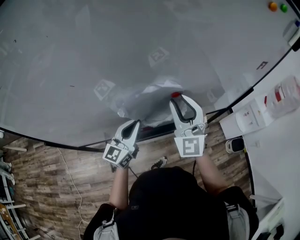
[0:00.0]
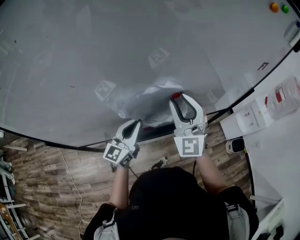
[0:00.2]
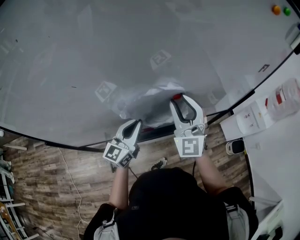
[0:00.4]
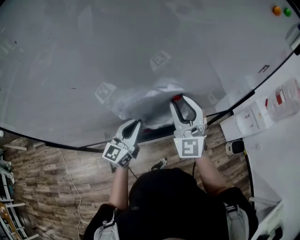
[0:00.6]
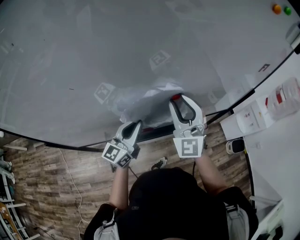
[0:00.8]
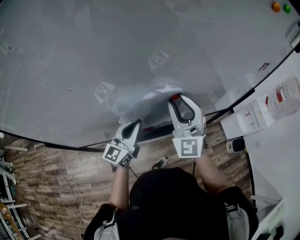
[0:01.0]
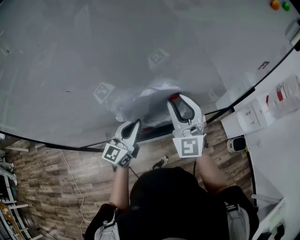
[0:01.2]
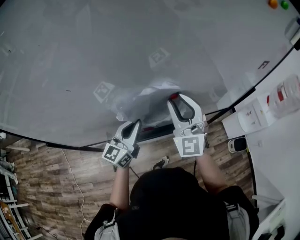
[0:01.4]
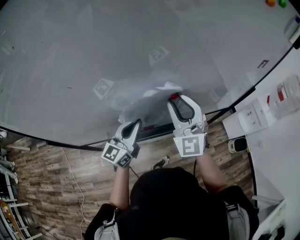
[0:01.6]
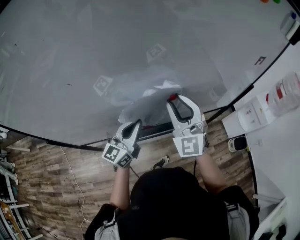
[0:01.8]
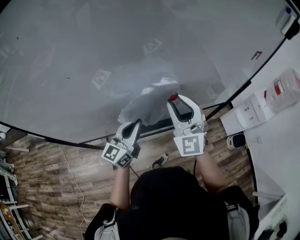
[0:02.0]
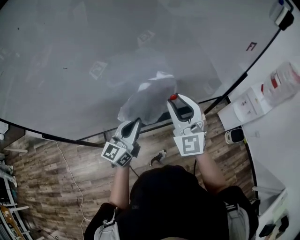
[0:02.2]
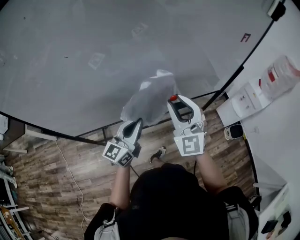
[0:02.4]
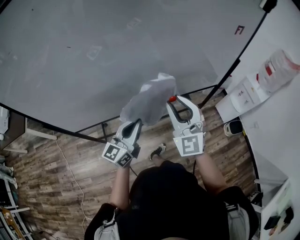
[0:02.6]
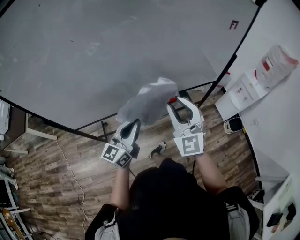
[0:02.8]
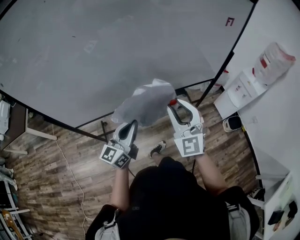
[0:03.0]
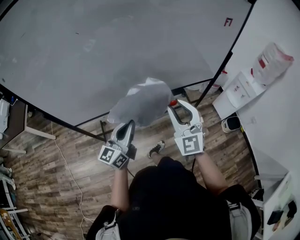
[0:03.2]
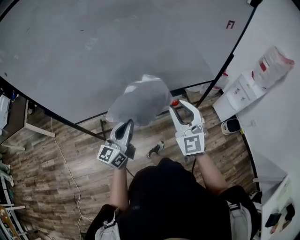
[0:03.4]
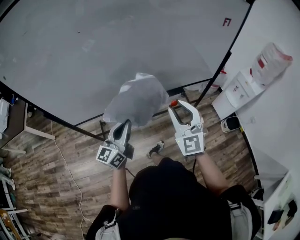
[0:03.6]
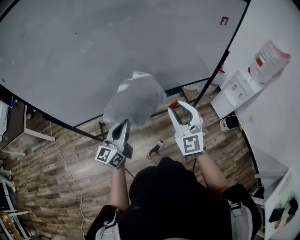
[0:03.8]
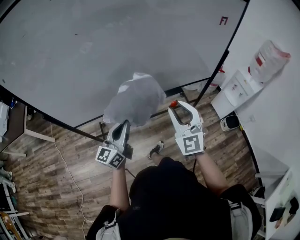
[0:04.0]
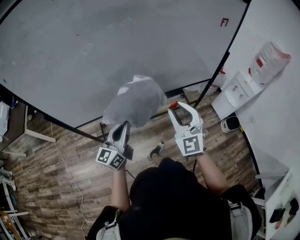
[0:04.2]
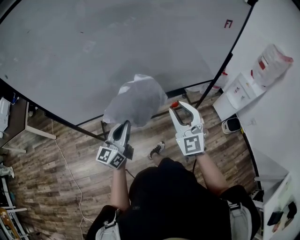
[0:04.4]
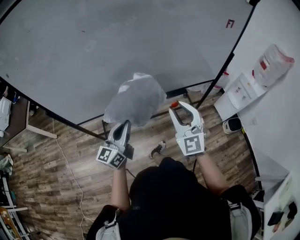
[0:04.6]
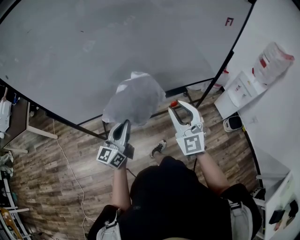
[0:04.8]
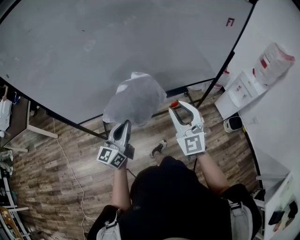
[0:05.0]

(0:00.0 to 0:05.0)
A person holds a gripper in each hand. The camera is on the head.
0:00.0 - 0:01.6: There are only small adjustments of the grippers.
0:01.6 - 0:03.4: Both grippers travel together backward, roughly 25 cm.
0:03.4 - 0:05.0: The grippers move only a little.

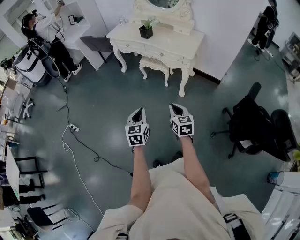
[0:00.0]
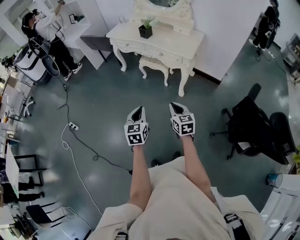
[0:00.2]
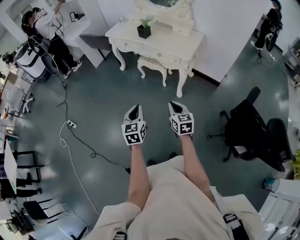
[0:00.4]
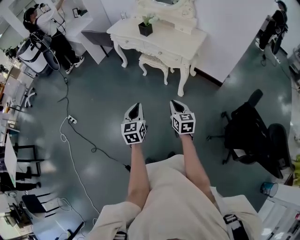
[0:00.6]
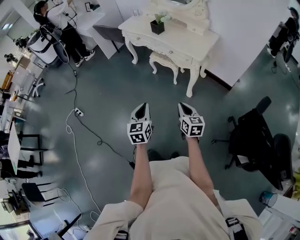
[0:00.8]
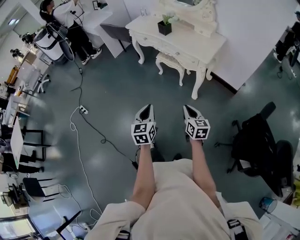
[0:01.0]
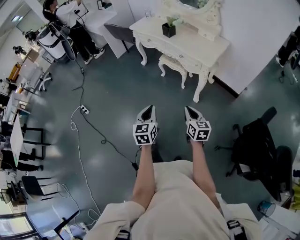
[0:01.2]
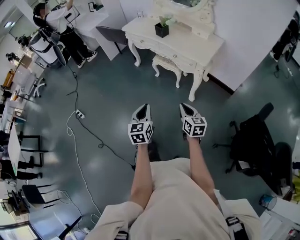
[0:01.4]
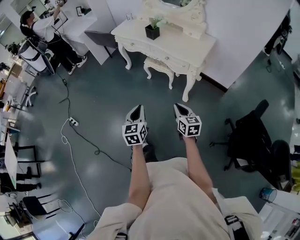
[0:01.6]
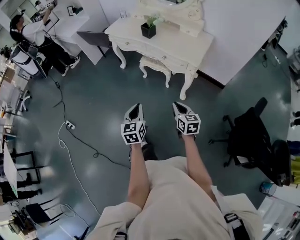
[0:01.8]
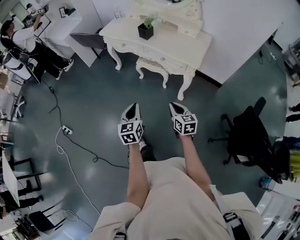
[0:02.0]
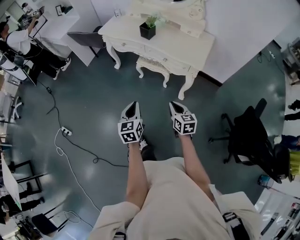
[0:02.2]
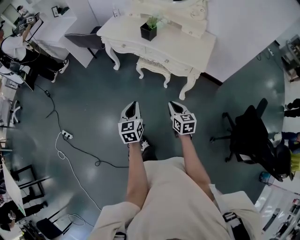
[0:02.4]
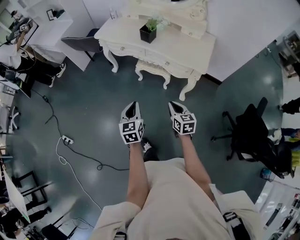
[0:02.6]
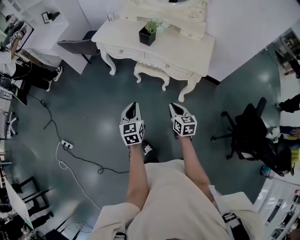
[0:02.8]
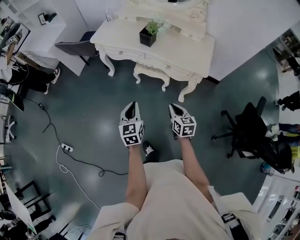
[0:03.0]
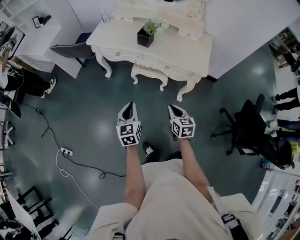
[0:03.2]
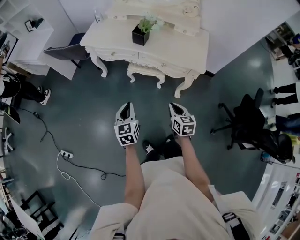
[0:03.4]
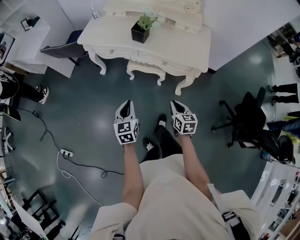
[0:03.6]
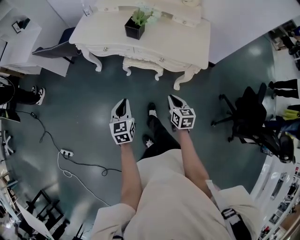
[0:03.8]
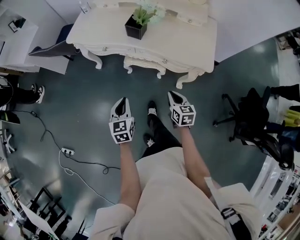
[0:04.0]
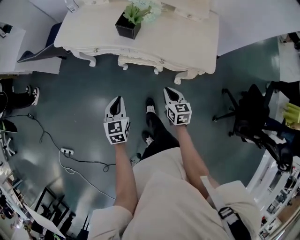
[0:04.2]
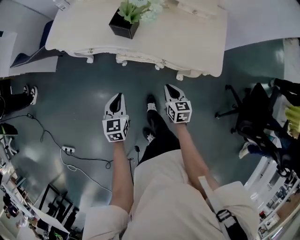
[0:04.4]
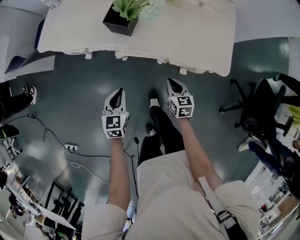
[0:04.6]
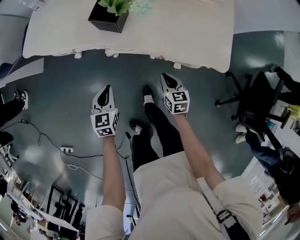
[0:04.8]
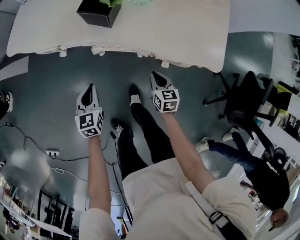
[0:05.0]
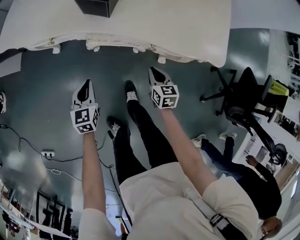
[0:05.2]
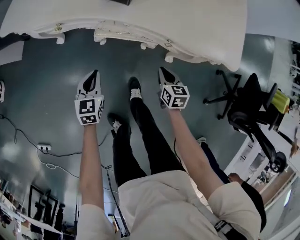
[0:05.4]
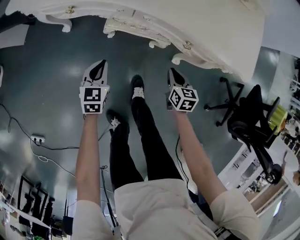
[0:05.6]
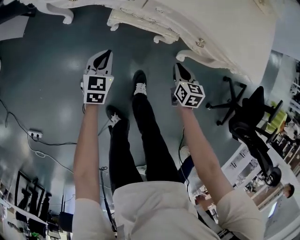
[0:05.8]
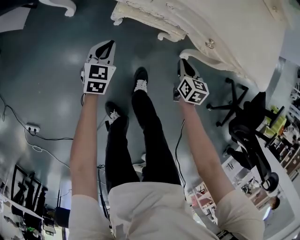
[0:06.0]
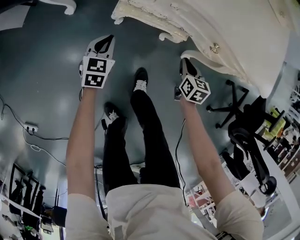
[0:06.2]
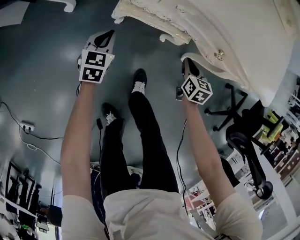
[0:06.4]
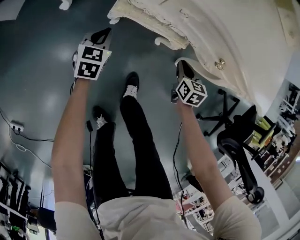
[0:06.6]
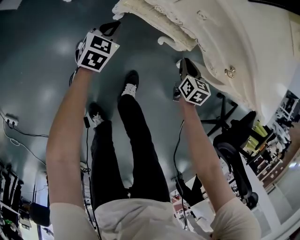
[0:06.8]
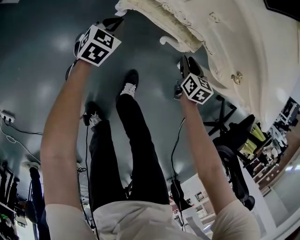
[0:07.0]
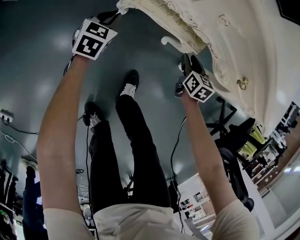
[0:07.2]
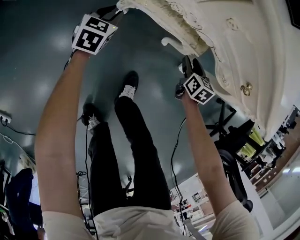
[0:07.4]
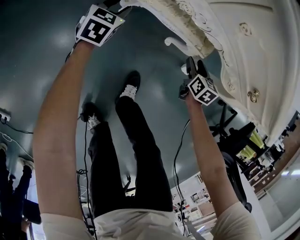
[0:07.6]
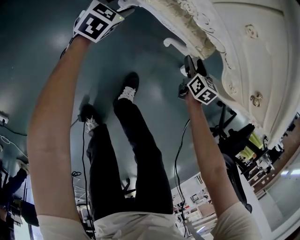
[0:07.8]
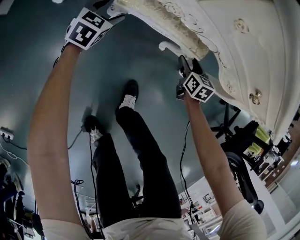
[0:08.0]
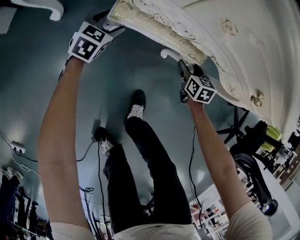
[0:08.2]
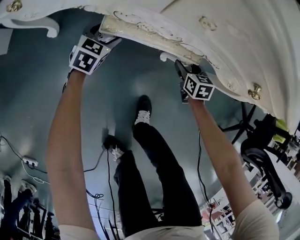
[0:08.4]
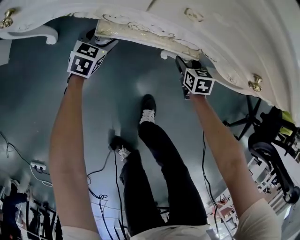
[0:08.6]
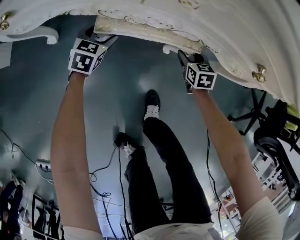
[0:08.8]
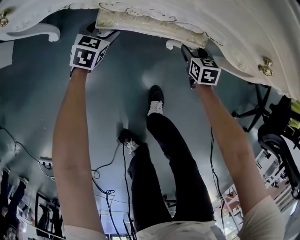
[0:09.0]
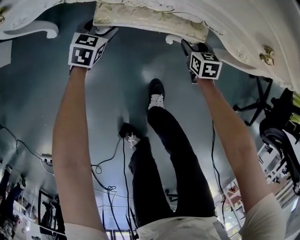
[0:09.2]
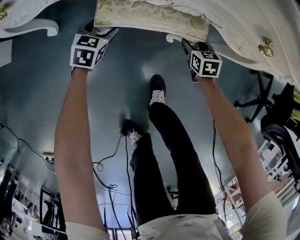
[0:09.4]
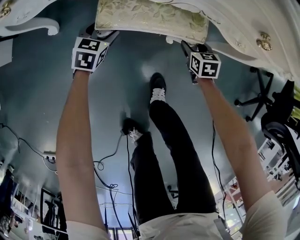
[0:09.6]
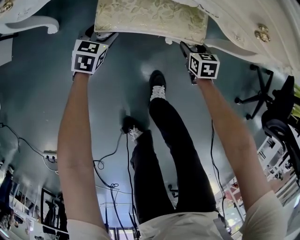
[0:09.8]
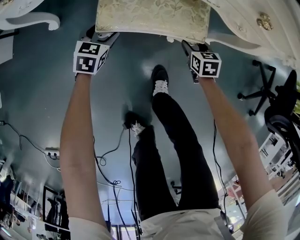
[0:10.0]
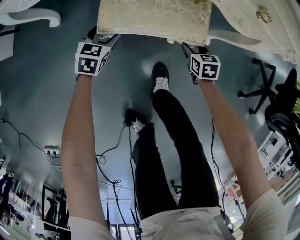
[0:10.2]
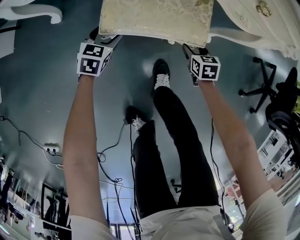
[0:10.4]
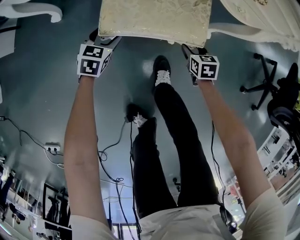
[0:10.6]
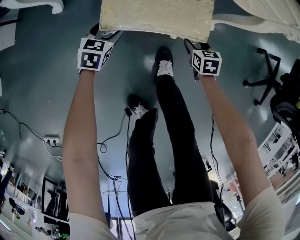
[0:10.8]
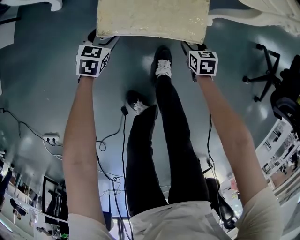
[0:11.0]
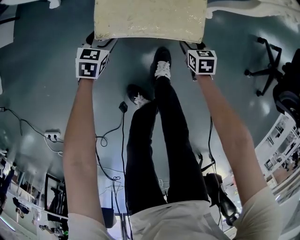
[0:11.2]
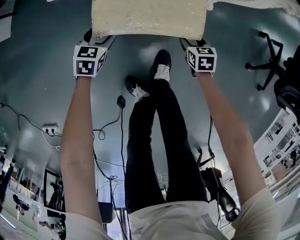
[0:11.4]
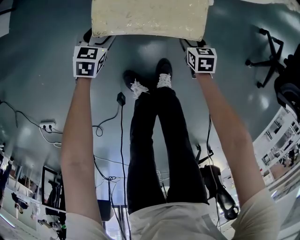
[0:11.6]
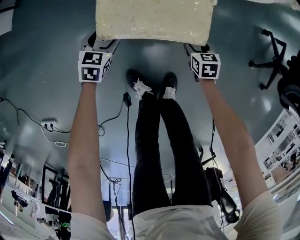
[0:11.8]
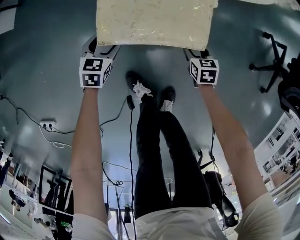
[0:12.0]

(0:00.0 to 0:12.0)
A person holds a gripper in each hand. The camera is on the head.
0:00.0 - 0:01.6: The left gripper travels forward by some 10 cm. The right gripper shifts roughly 10 cm forward and to the right.
0:01.6 - 0:03.0: Both grippers travel together forward and to the left, roughly 30 cm.
0:03.0 - 0:04.4: The grippers both shift forward and downward by about 30 cm.
0:04.4 - 0:06.0: Both grippers travel together downward, roughly 25 cm.
0:06.0 - 0:07.6: Both grippers move downward and forward, approximately 20 cm. The left gripper opens; the right gripper opens its fingers.
0:07.6 - 0:09.0: The right gripper changes place by roughly 5 cm. Meanwhile the left gripper shifts by approximately 5 cm, and opens.
0:09.0 - 0:10.4: The two grippers go about 15 cm backward.
0:10.4 - 0:12.0: Both grippers move backward, some 25 cm.

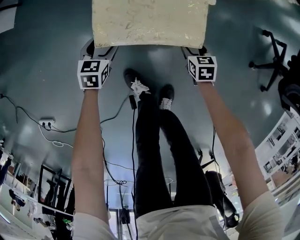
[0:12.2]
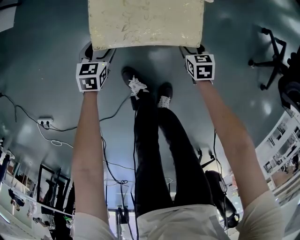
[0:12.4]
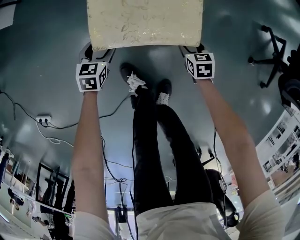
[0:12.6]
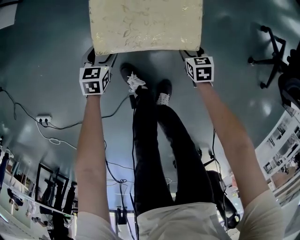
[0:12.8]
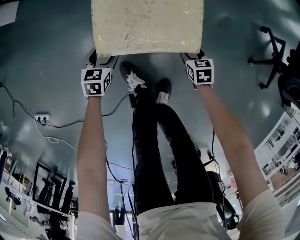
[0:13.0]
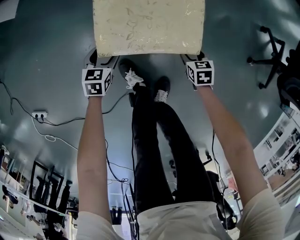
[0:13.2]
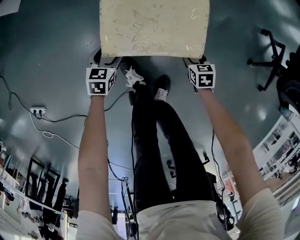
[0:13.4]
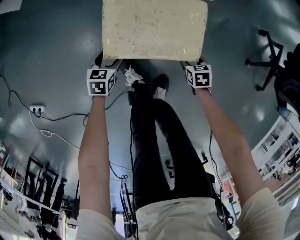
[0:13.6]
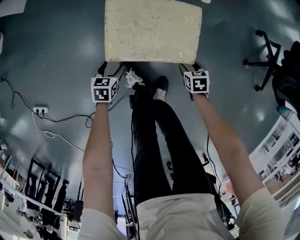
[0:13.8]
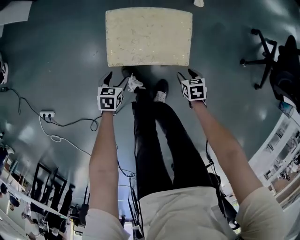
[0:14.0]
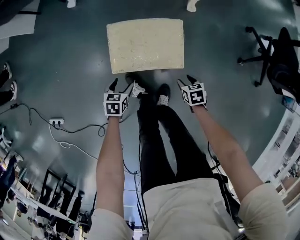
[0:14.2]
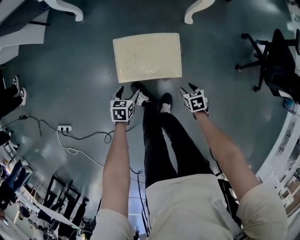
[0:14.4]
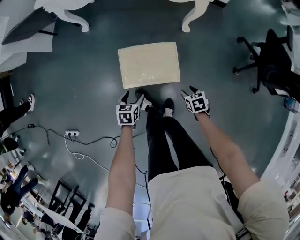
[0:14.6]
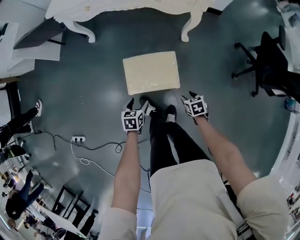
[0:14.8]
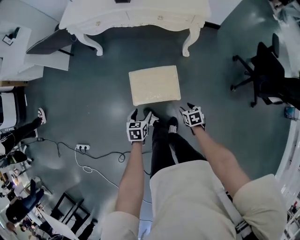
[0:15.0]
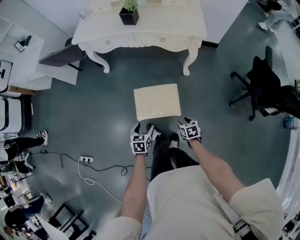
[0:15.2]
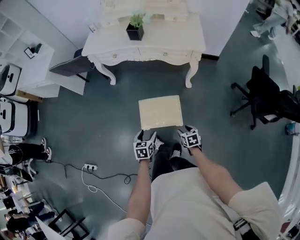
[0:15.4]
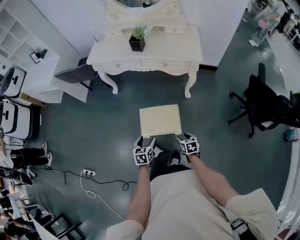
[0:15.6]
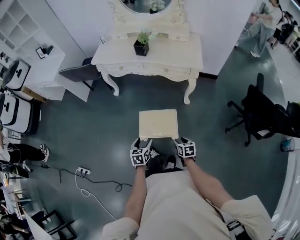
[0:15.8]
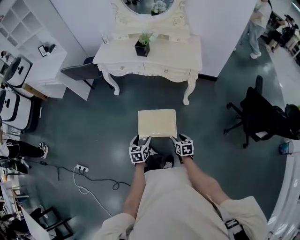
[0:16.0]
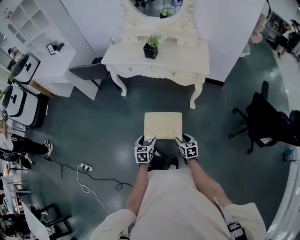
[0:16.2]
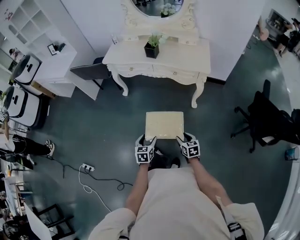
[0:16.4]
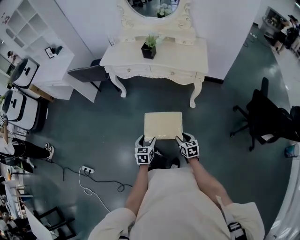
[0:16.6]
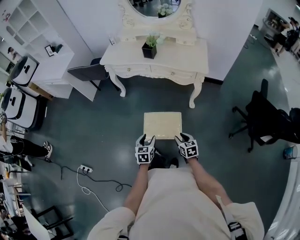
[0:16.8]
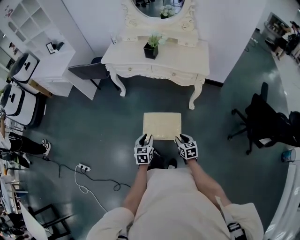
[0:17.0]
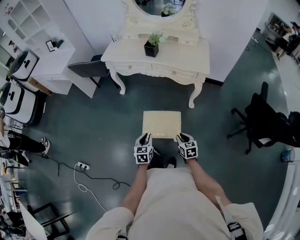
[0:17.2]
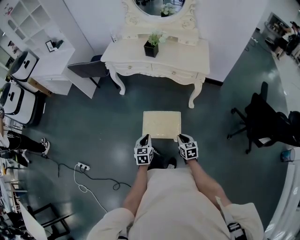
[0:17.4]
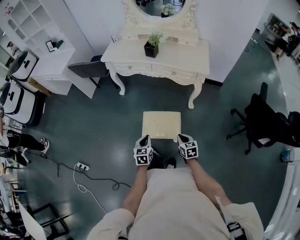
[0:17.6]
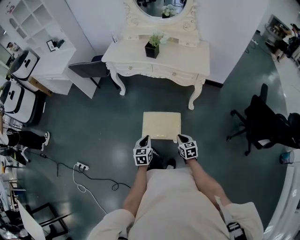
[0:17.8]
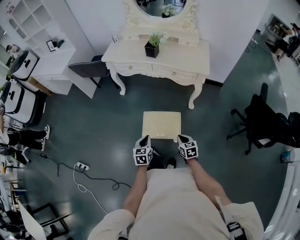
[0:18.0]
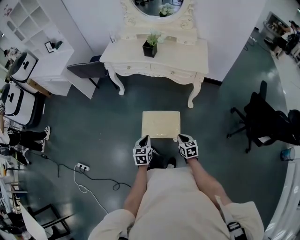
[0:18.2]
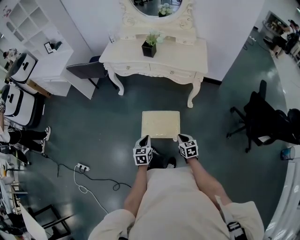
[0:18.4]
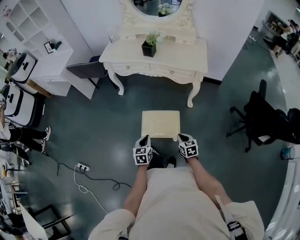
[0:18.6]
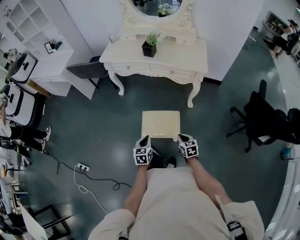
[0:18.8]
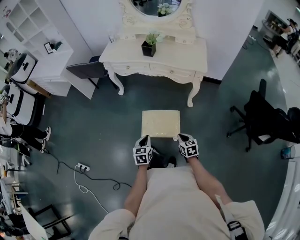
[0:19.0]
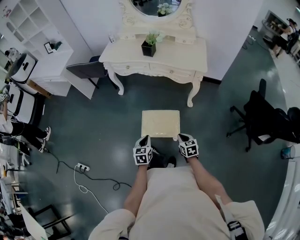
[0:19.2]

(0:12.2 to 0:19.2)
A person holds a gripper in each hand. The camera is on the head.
0:12.2 - 0:13.6: The grippers both shift backward by about 15 cm.
0:13.6 - 0:15.0: The grippers both shift upward by approximately 30 cm.
0:15.0 - 0:16.4: The grippers both shift upward by approximately 15 cm. The right gripper rotates about 30 degrees.
0:16.4 - 0:17.8: The left gripper closes. The right gripper closes its fingers.
0:17.8 - 0:19.2: The grippers stay close to where they were, moving slightly.
